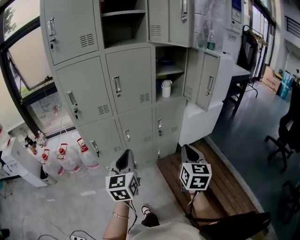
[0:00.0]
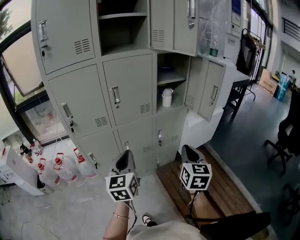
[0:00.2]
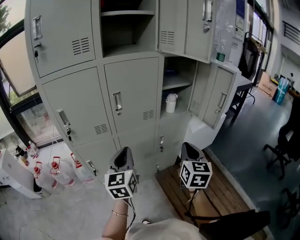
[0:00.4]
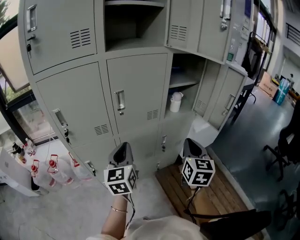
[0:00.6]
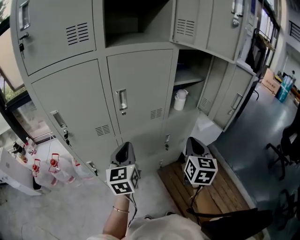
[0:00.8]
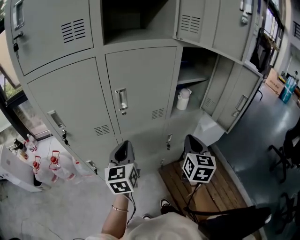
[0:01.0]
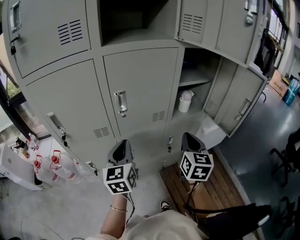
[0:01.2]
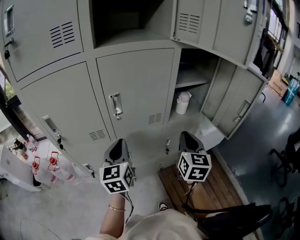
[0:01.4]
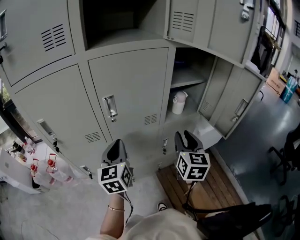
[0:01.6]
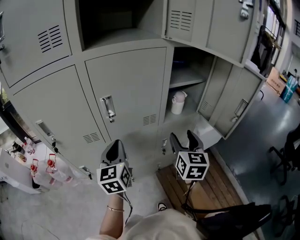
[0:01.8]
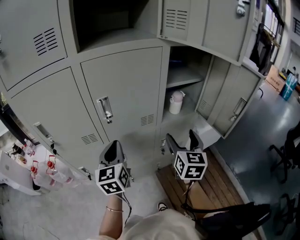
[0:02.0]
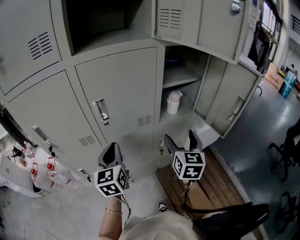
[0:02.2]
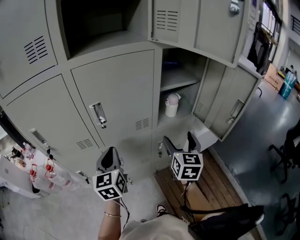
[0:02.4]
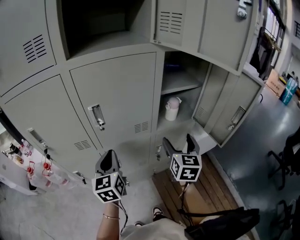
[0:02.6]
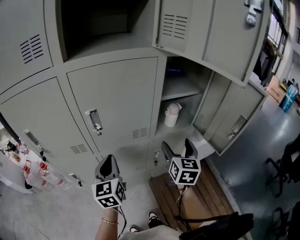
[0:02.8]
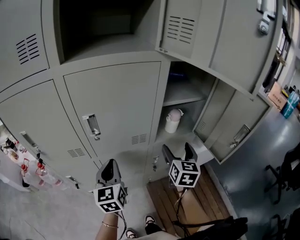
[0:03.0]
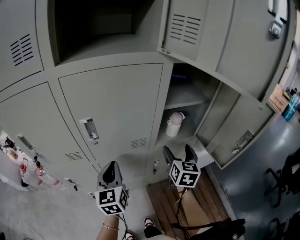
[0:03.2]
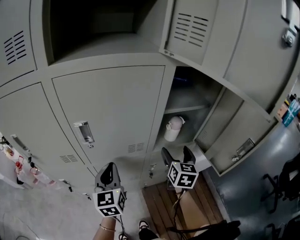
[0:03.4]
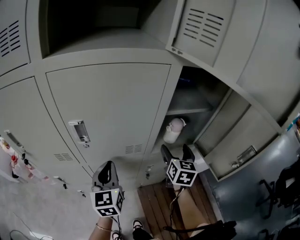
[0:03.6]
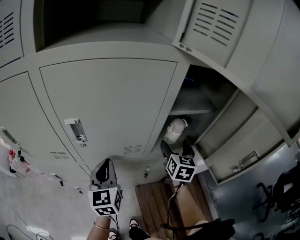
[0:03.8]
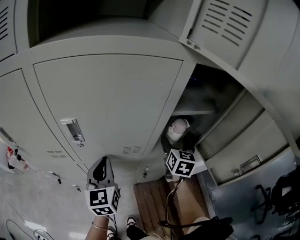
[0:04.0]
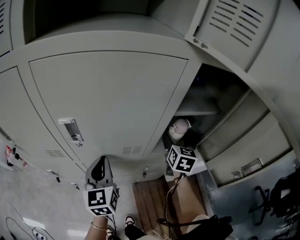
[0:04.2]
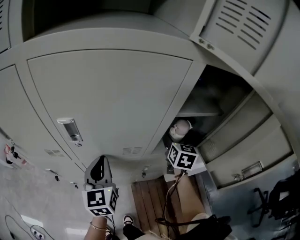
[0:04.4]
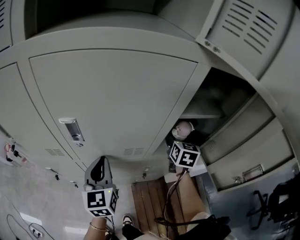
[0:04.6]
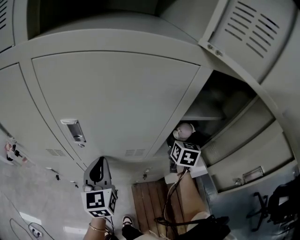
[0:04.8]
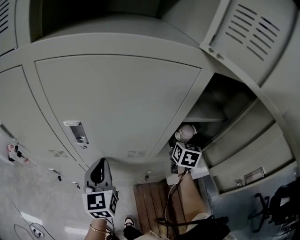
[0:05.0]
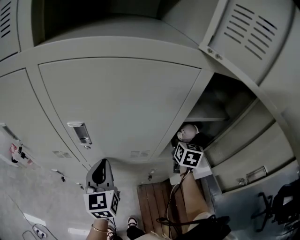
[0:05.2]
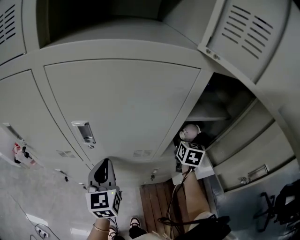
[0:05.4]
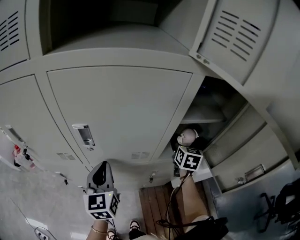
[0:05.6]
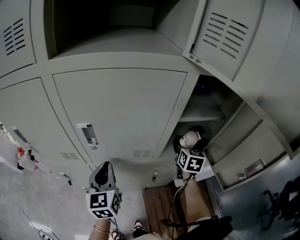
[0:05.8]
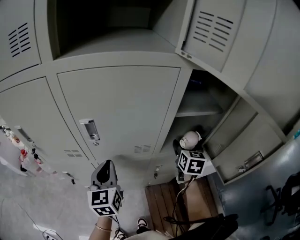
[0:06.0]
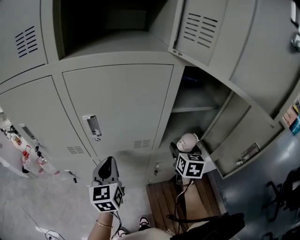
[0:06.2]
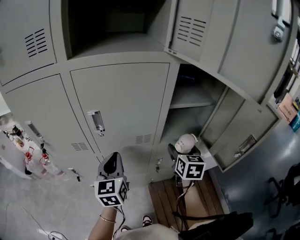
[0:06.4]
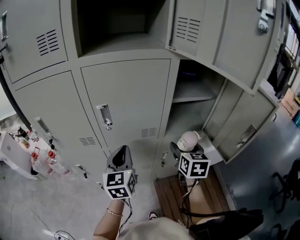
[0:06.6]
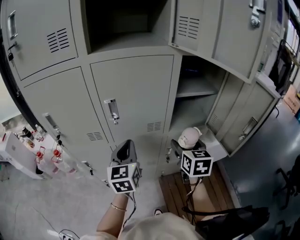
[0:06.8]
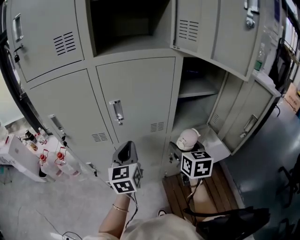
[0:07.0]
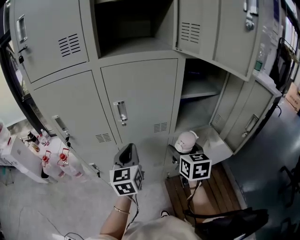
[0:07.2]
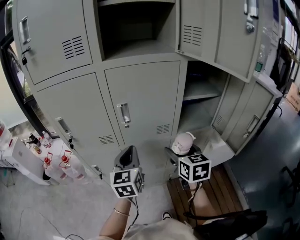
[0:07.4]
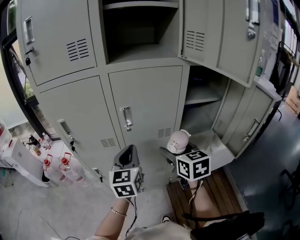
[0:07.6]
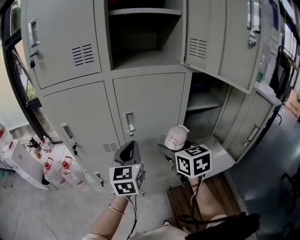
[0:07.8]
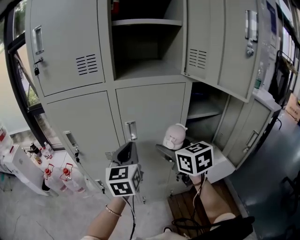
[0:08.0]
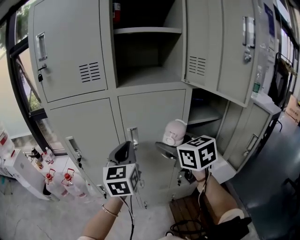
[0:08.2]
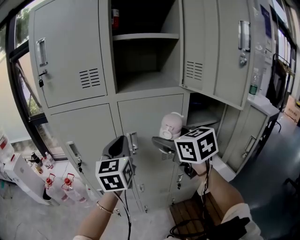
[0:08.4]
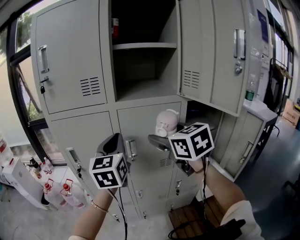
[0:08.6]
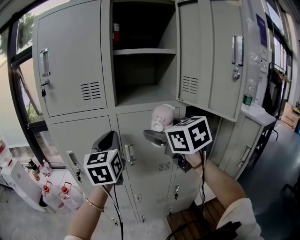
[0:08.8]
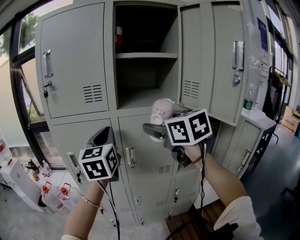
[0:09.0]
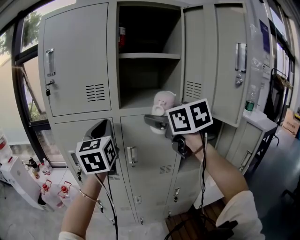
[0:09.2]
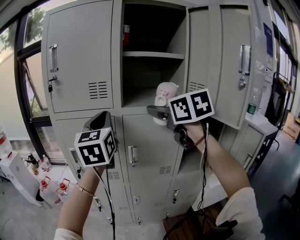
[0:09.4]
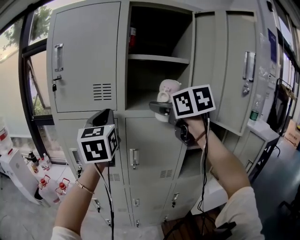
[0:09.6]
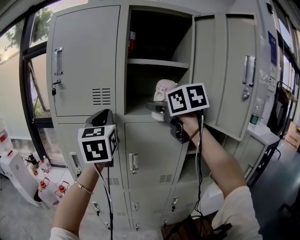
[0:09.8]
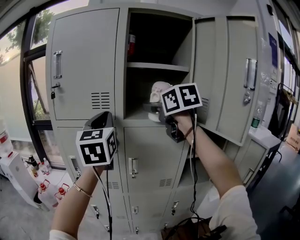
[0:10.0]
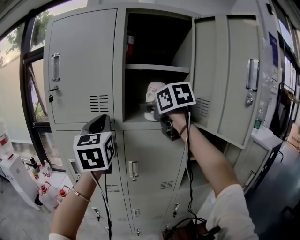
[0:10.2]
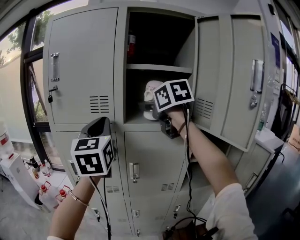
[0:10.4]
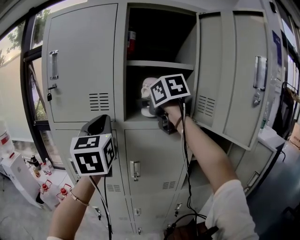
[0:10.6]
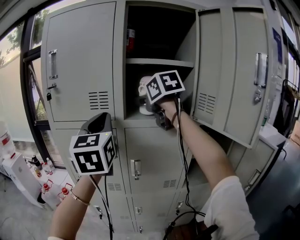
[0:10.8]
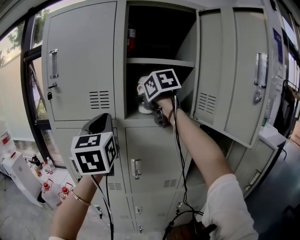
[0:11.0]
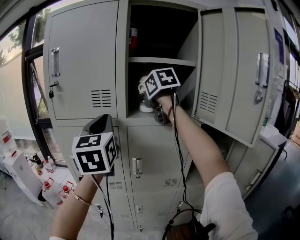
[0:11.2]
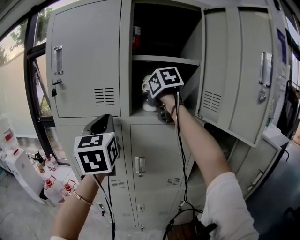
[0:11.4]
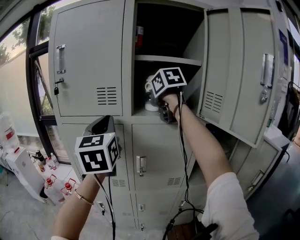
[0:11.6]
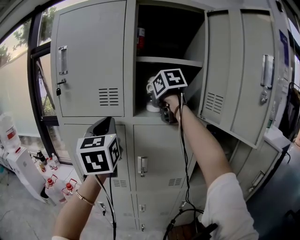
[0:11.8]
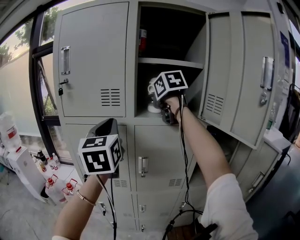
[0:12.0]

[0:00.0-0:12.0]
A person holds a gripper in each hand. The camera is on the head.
0:00.0 to 0:01.6: The grippers both shift forward by roughly 30 cm.
0:01.6 to 0:03.0: The left gripper ends up roughly 5 cm from where it was; the right gripper heads forward, covering some 10 cm, and opens.
0:03.0 to 0:04.4: The left gripper goes some 5 cm forward. The right gripper travels forward by about 20 cm.
0:04.4 to 0:06.0: The right gripper is displaced backward by roughly 5 cm, while the left gripper changes place by about 5 cm.
0:06.0 to 0:07.6: The right gripper heads to the left, backward and upward, covering some 30 cm, and swivels some 20 degrees, while the left gripper moves upward and backward, roughly 10 cm.
0:07.6 to 0:09.0: The two grippers go roughly 25 cm upward.
0:09.0 to 0:10.4: The right gripper heads forward and upward, covering approximately 15 cm. Meanwhile the left gripper travels upward by approximately 10 cm.
0:10.4 to 0:12.0: The right gripper shifts about 5 cm forward.

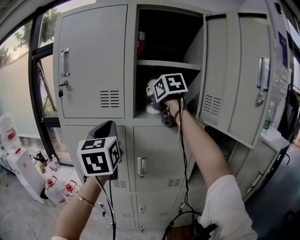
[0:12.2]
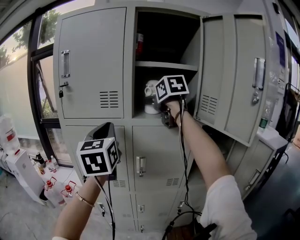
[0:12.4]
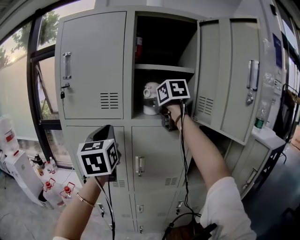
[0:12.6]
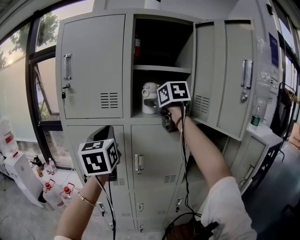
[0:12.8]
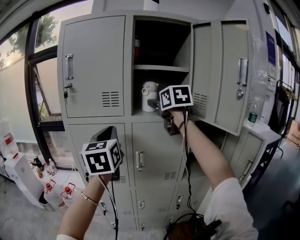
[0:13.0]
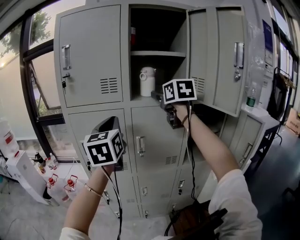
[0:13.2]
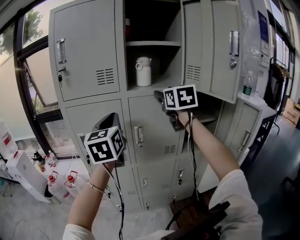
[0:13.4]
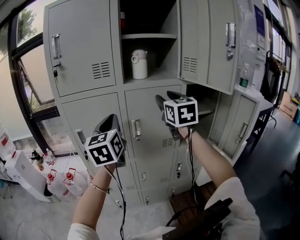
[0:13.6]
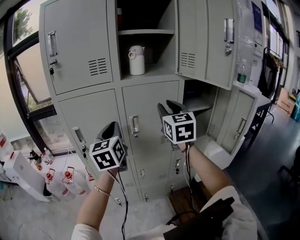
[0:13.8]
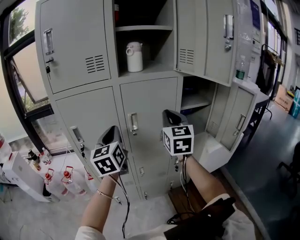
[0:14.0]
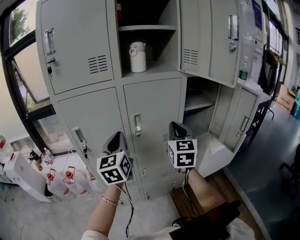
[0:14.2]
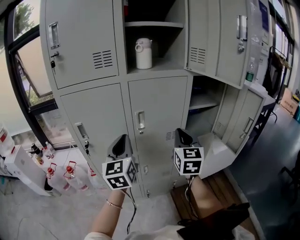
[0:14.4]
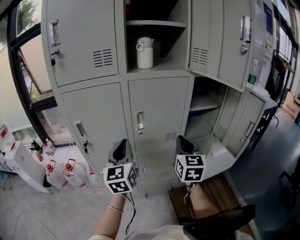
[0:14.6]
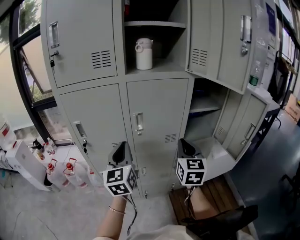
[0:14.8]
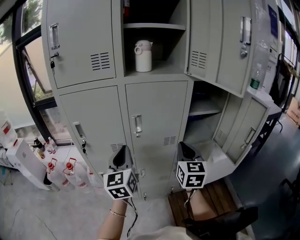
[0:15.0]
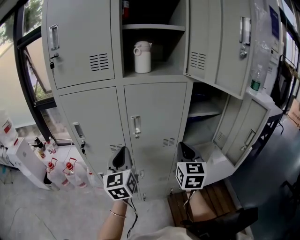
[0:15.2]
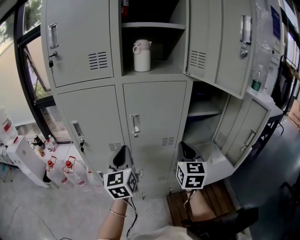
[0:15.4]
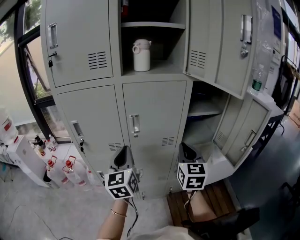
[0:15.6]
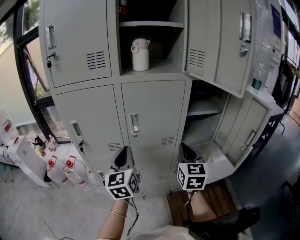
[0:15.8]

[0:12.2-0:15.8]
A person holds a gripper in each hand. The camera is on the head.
0:12.2 to 0:14.0: The left gripper heads downward, covering about 15 cm. Meanwhile the right gripper is displaced backward and downward by some 30 cm, changes its angle by roughly 30 degrees, and closes its fingers.
0:14.0 to 0:15.8: The grippers both shift downward and to the right by roughly 10 cm.

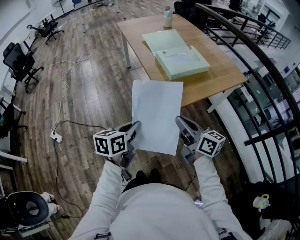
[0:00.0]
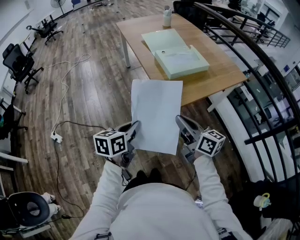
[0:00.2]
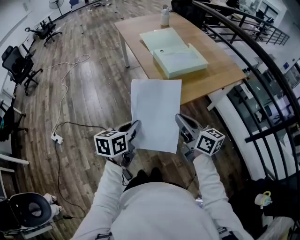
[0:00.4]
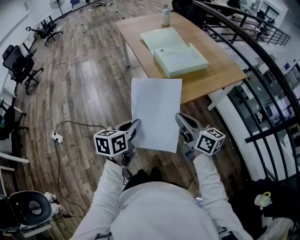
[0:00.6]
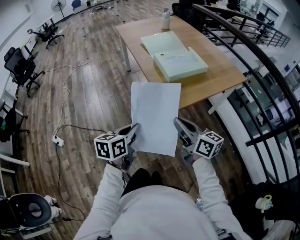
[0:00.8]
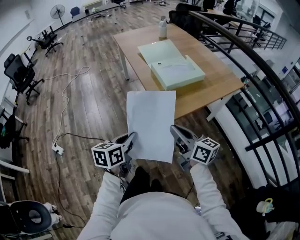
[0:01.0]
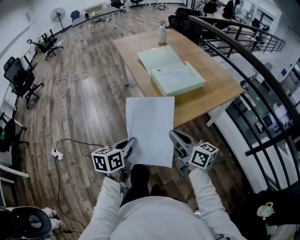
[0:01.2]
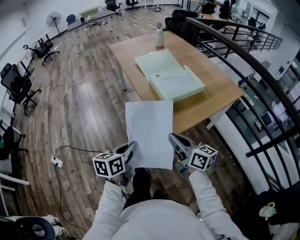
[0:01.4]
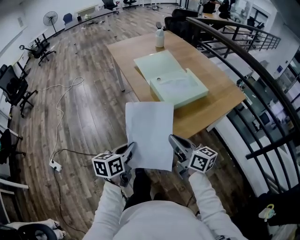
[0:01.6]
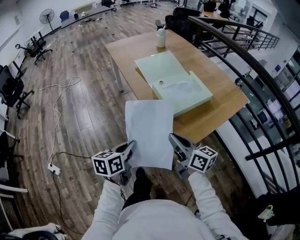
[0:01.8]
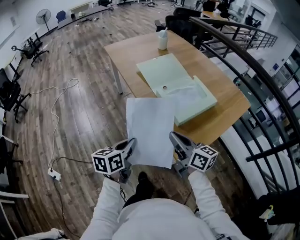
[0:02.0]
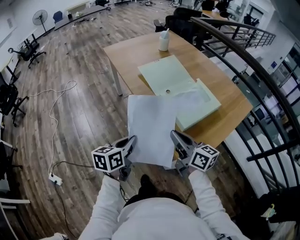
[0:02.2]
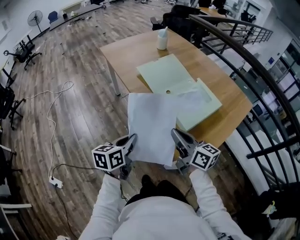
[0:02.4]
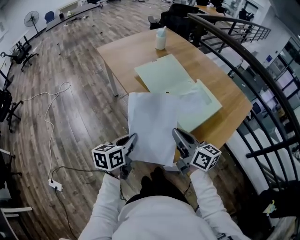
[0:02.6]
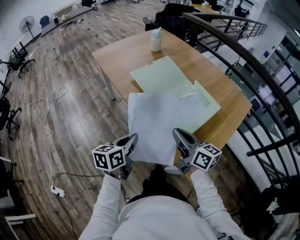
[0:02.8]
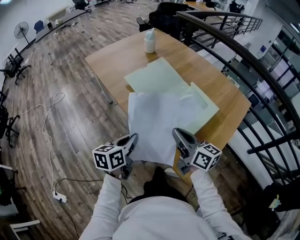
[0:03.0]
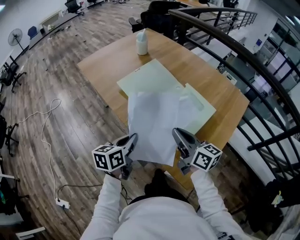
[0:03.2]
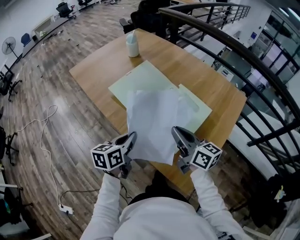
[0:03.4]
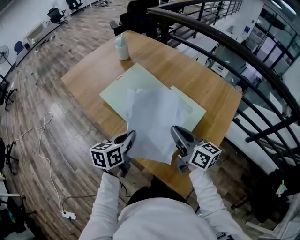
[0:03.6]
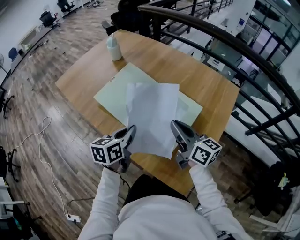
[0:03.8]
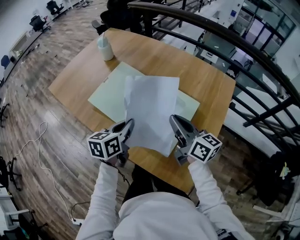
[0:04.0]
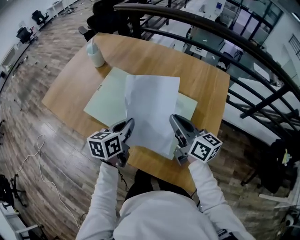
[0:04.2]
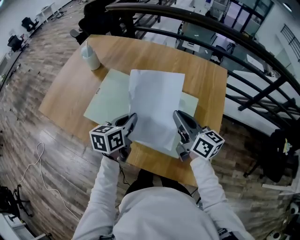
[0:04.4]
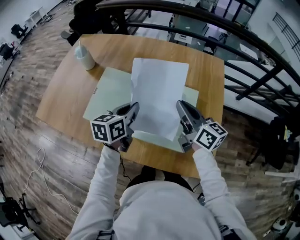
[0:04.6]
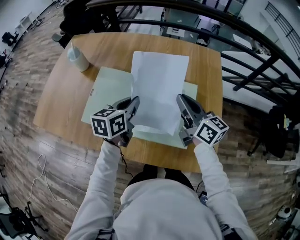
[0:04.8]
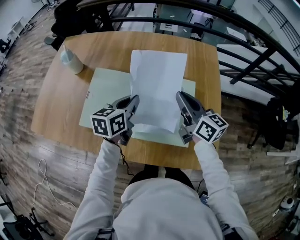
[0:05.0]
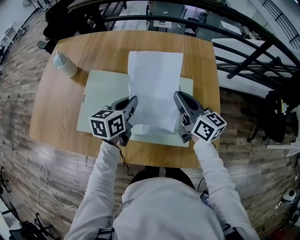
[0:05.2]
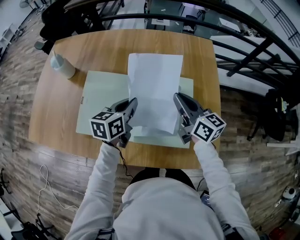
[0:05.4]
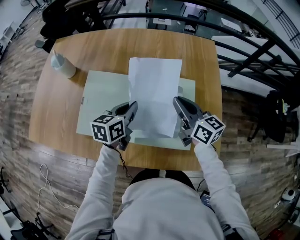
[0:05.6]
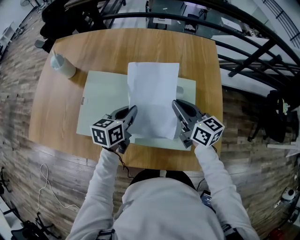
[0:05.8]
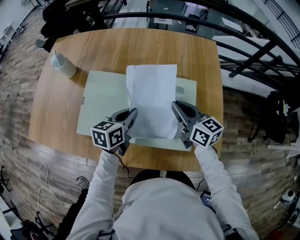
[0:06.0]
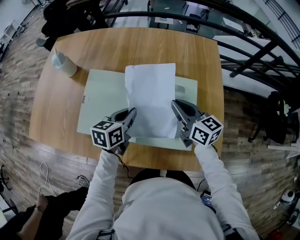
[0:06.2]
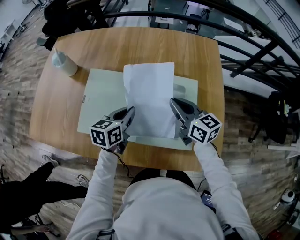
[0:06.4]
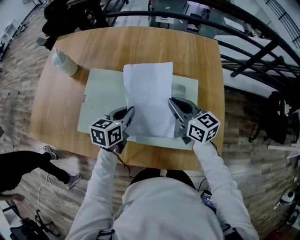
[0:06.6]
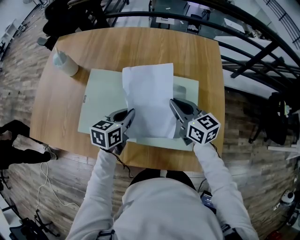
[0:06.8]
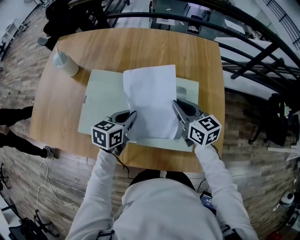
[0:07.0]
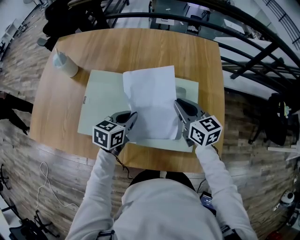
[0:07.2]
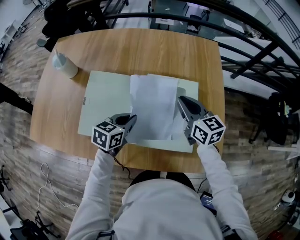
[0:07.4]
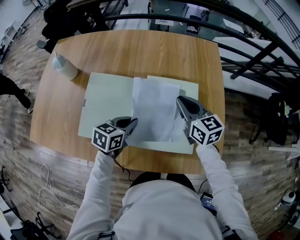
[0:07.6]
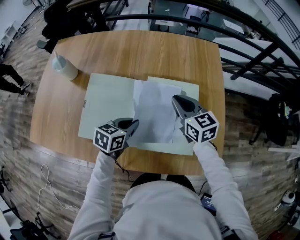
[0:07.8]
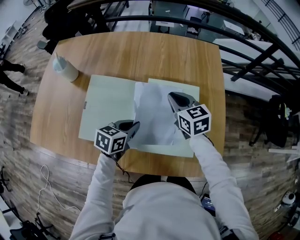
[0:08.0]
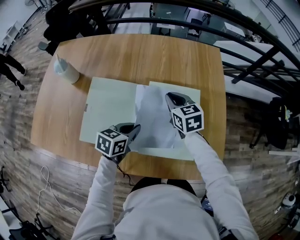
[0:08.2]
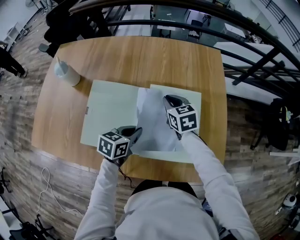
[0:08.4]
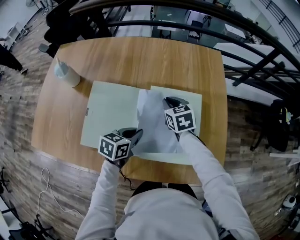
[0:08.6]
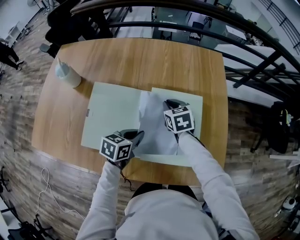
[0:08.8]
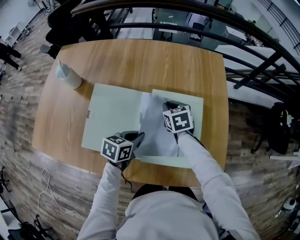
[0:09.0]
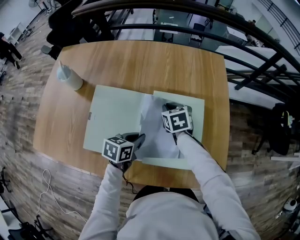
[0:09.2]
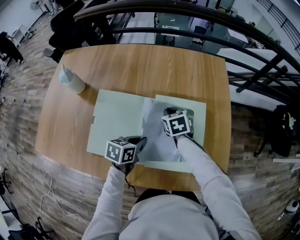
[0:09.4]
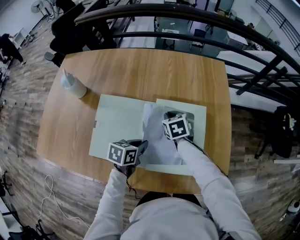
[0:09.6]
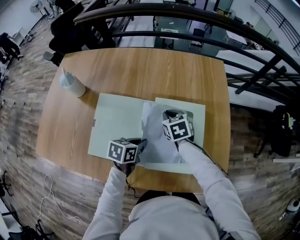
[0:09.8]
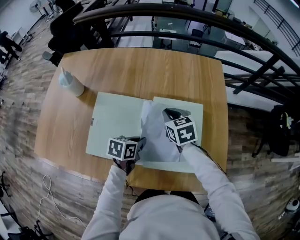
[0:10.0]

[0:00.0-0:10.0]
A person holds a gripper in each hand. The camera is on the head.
0:00.0 to 0:01.4: Both grippers move forward, roughly 5 cm.
0:01.4 to 0:02.8: Both grippers travel together forward, approximately 30 cm.
0:02.8 to 0:04.2: Both grippers move forward and to the right, roughly 25 cm. The left gripper changes its angle by about 30 degrees, while the right gripper turns by roughly 30 degrees.
0:04.2 to 0:05.8: The right gripper goes about 10 cm downward and forward, while the left gripper shifts about 10 cm forward and downward, and turns by about 30 degrees.
0:05.8 to 0:07.2: The grippers move only a little.
0:07.2 to 0:08.6: The right gripper goes about 10 cm forward, downward and to the left, and turns by approximately 20 degrees.
0:08.6 to 0:10.0: The grippers move only a little.
